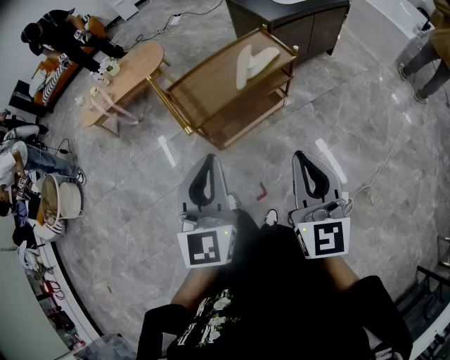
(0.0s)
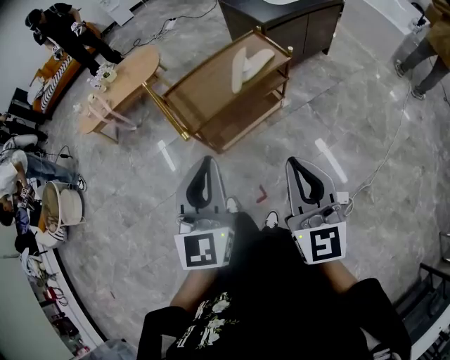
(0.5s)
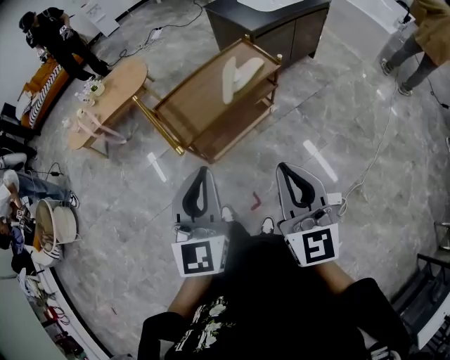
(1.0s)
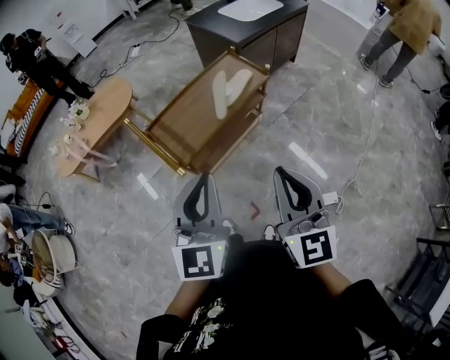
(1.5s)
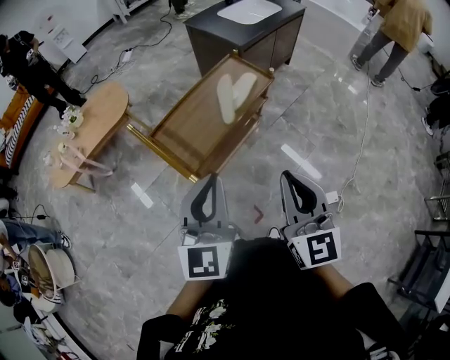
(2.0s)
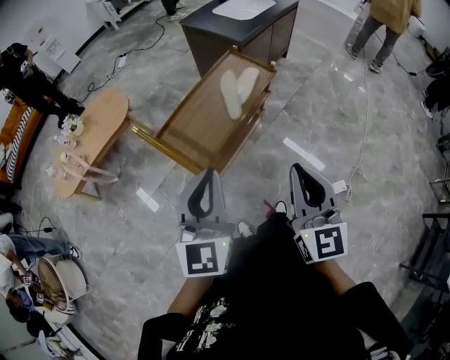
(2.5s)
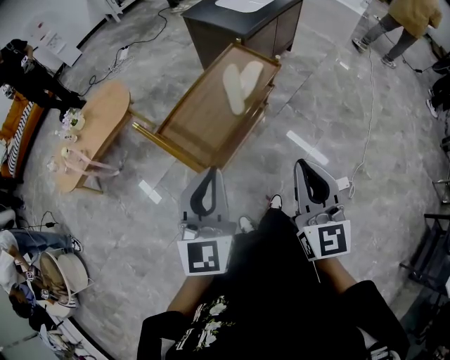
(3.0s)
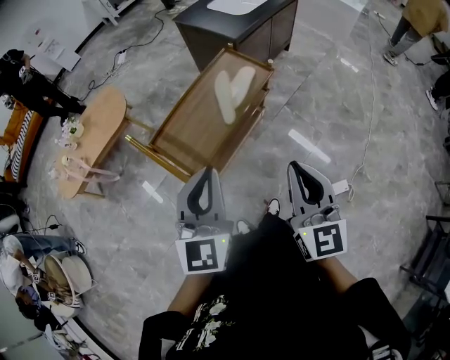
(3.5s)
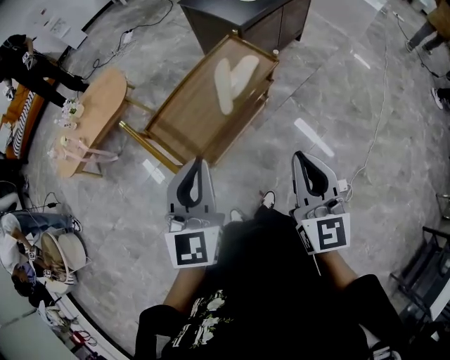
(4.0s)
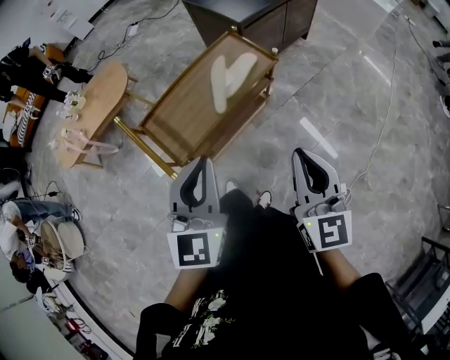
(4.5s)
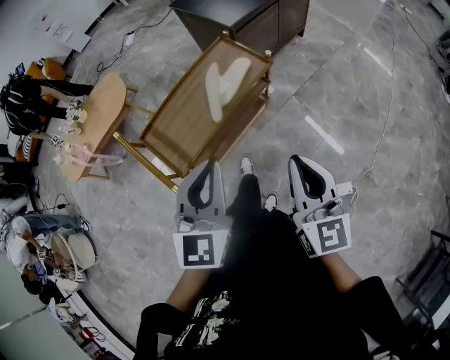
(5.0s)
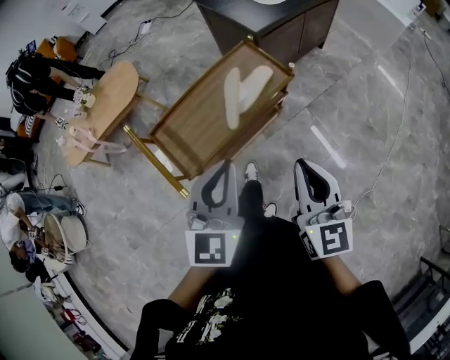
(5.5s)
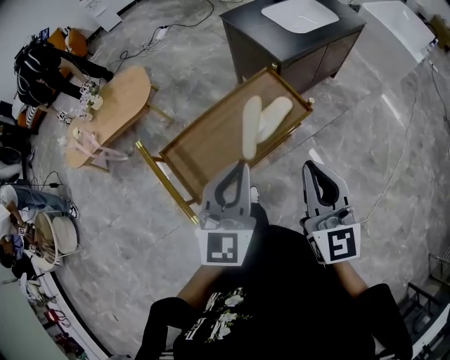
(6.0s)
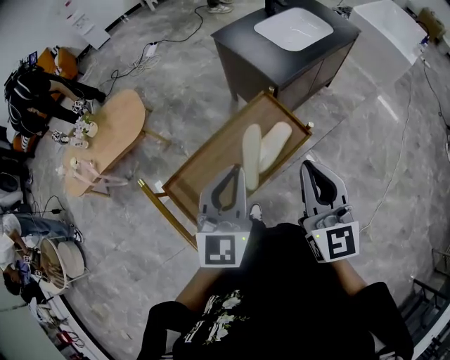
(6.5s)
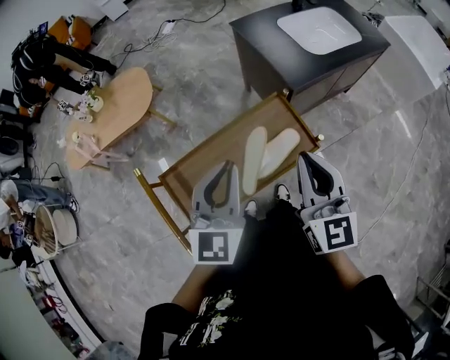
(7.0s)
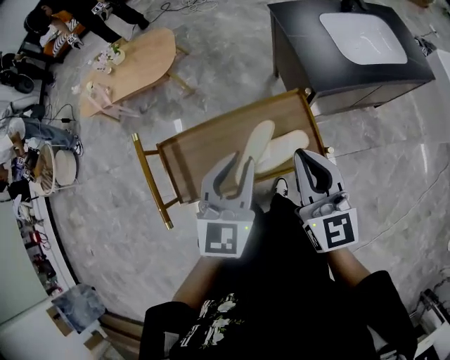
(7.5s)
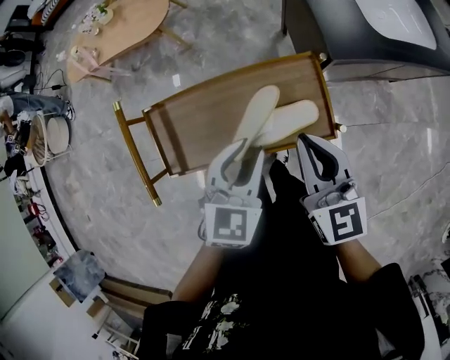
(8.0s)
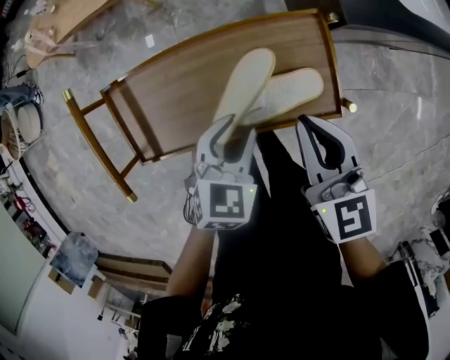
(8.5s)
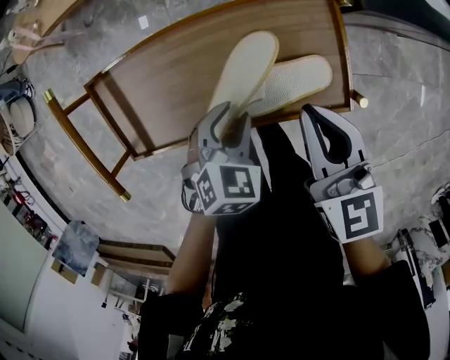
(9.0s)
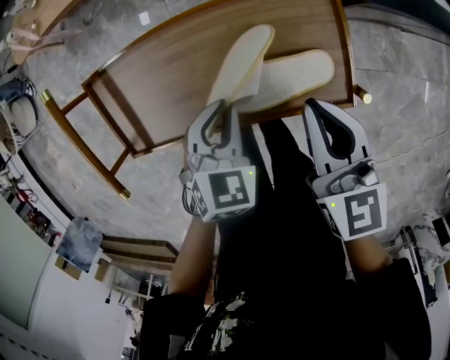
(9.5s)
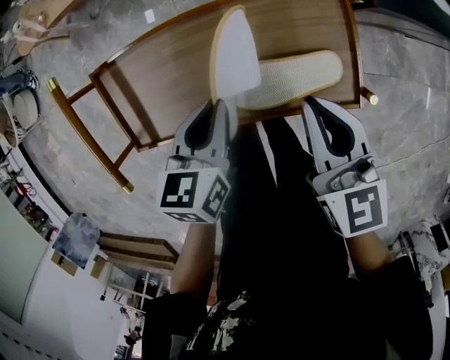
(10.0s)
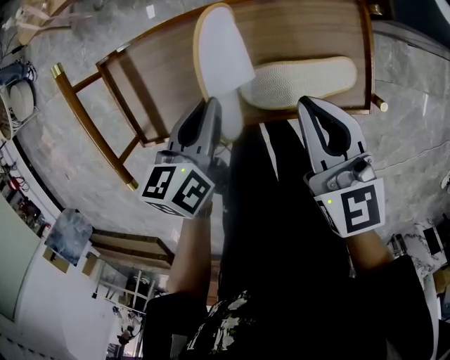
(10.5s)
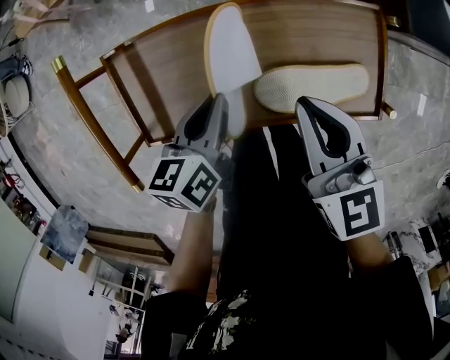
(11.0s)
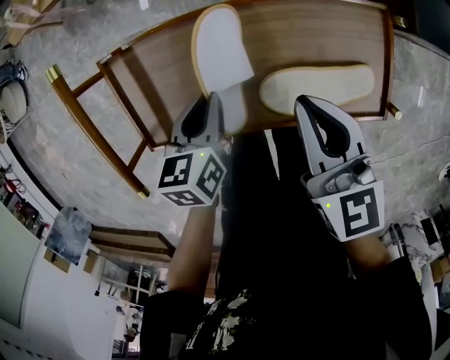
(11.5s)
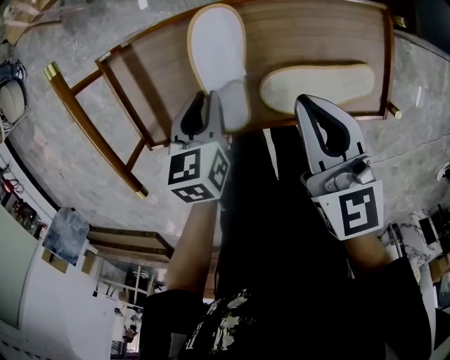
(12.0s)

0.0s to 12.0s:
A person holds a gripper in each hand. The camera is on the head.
0.0s to 2.0s: The right gripper heads to the left and forward, covering some 15 cm. The left gripper is displaced forward and to the left by some 15 cm.
2.0s to 4.0s: The right gripper shifts roughly 10 cm forward and to the right; the left gripper goes approximately 10 cm forward.
4.0s to 6.0s: Both grippers travel together forward, approximately 15 cm.
6.0s to 8.0s: The left gripper moves approximately 25 cm, turns by approximately 30 degrees, and opens, while the right gripper changes place by approximately 25 cm, and turns by roughly 40 degrees.
8.0s to 10.0s: The right gripper heads downward, covering roughly 10 cm. The left gripper goes roughly 15 cm downward and to the left, and turns by approximately 30 degrees.
10.0s to 12.0s: The left gripper goes roughly 15 cm to the left and downward; the right gripper is displaced to the left by roughly 10 cm.

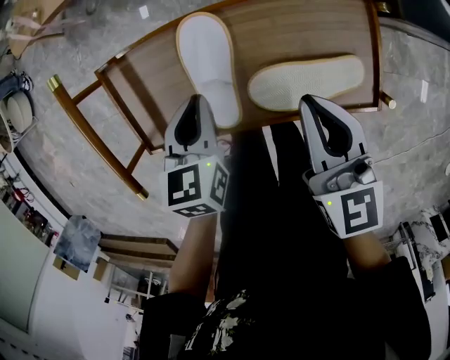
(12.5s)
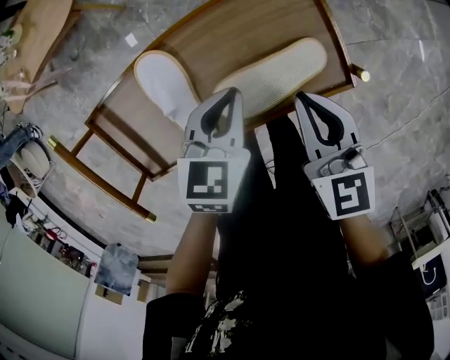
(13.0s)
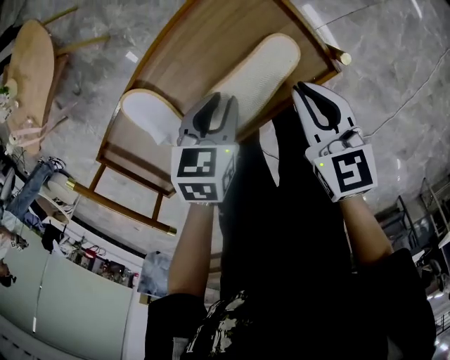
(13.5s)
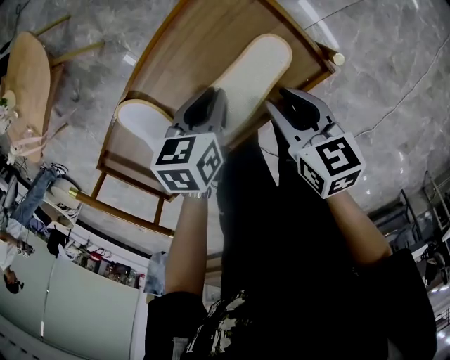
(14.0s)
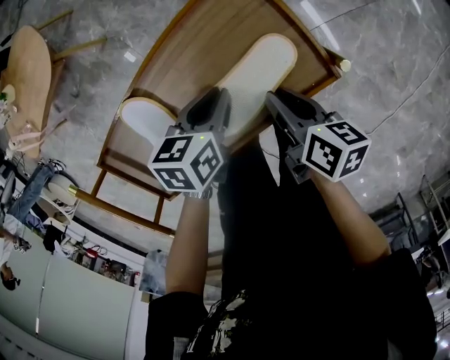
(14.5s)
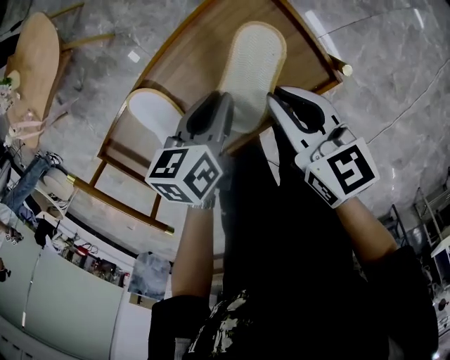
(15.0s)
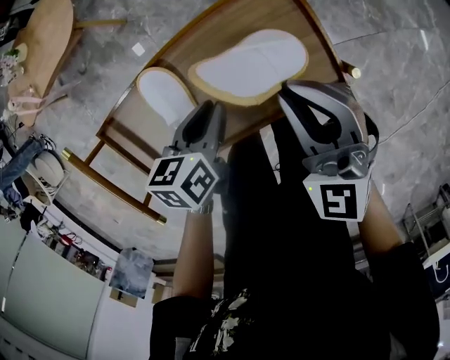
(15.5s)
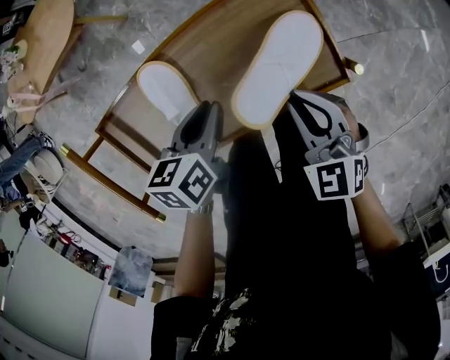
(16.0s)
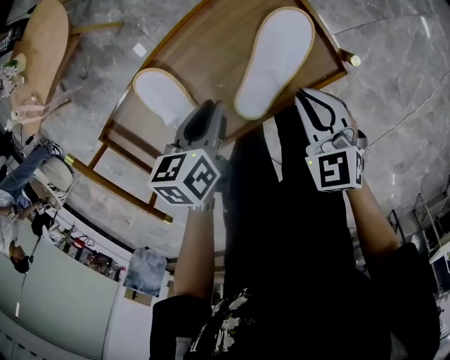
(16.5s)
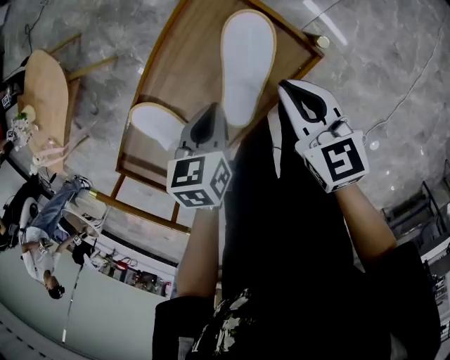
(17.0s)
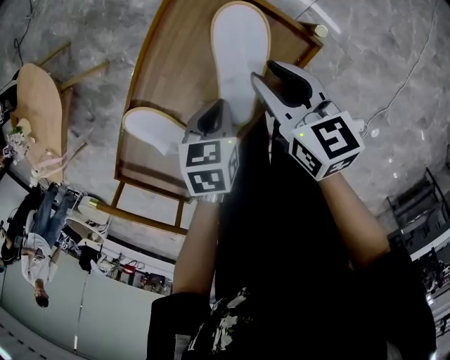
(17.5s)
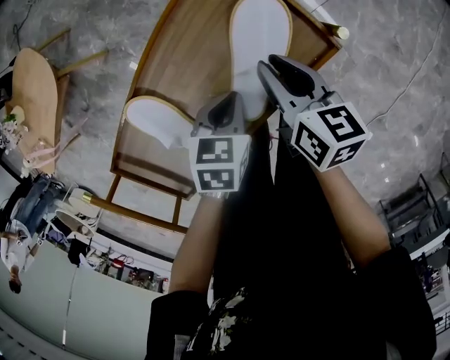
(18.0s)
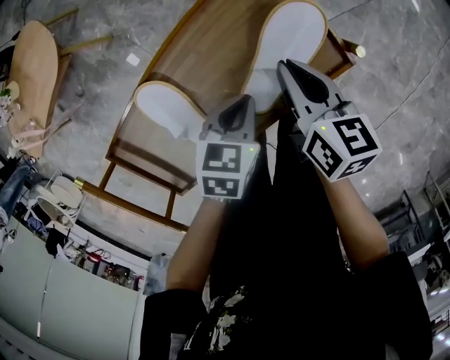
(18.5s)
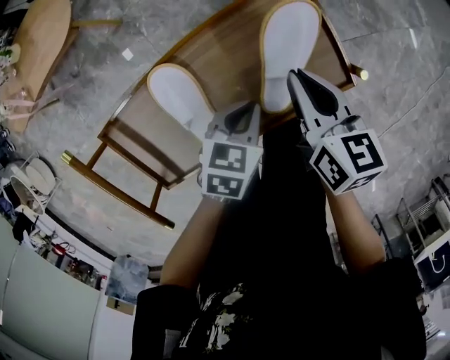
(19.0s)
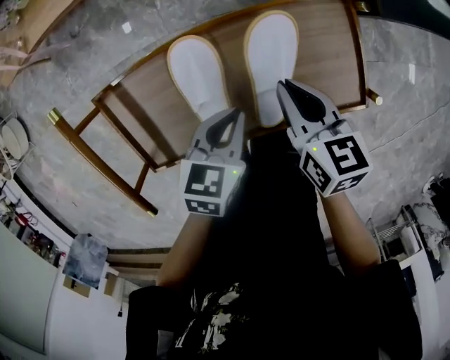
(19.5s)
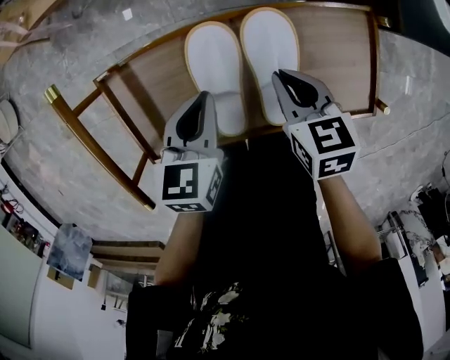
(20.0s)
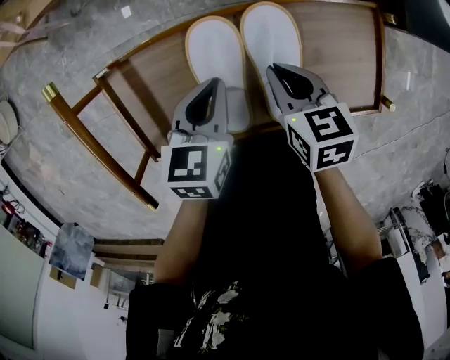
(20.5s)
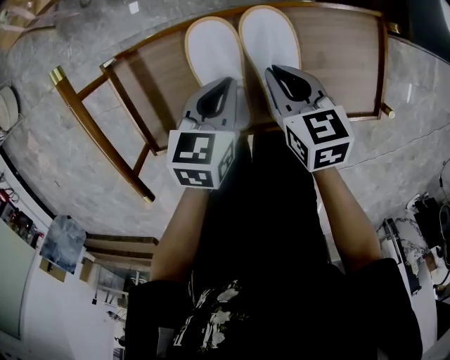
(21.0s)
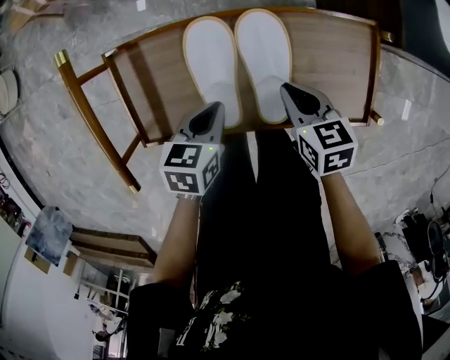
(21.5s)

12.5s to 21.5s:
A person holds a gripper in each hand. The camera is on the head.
12.5s to 14.5s: The left gripper changes place by roughly 20 cm, and turns by some 40 degrees; the right gripper travels downward by some 15 cm, and twists some 60 degrees clockwise, seen from behind.
14.5s to 17.0s: The right gripper goes about 5 cm upward, and changes its angle by roughly 40 degrees.
17.0s to 19.5s: The right gripper moves approximately 15 cm, rotates about 20 degrees, and opens and closes again. Meanwhile the left gripper shifts by roughly 10 cm.
19.5s to 21.5s: The left gripper is displaced to the left by roughly 5 cm, while the right gripper moves downward, approximately 5 cm, and changes its angle by about 20 degrees.

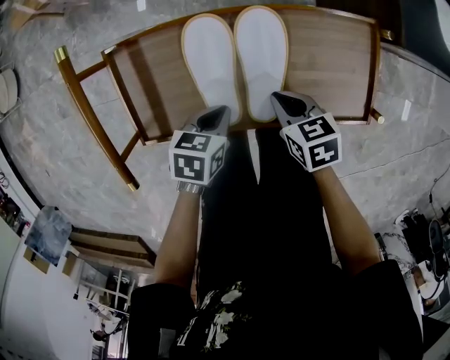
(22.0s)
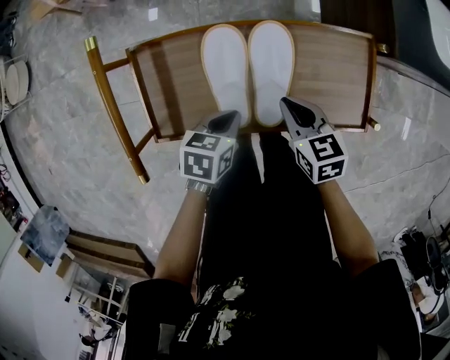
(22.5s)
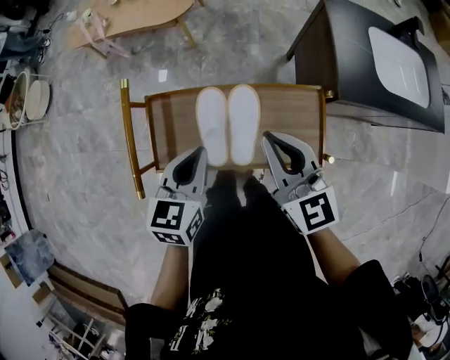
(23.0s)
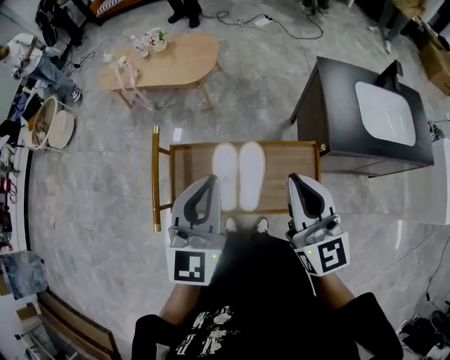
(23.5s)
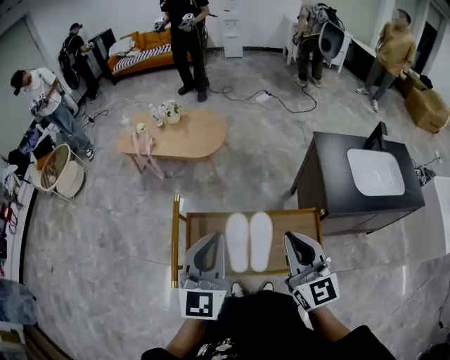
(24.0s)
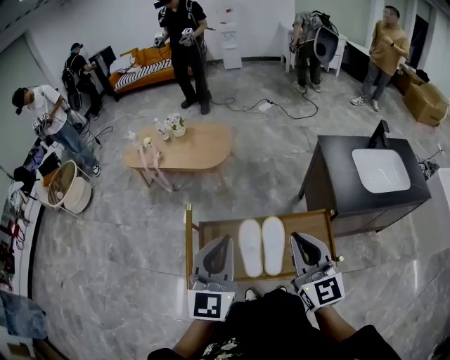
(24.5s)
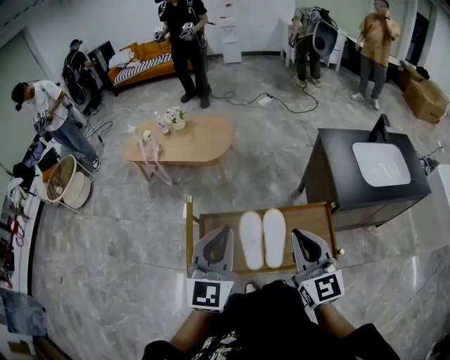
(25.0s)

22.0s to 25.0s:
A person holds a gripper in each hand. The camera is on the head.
22.0s to 23.5s: Both grippers move upward, about 40 cm. The right gripper tilts its fingers about 60 degrees upward. Meanwhile the left gripper tips its fingers upward by about 50 degrees.
23.5s to 25.0s: The two grippers go some 5 cm to the left.

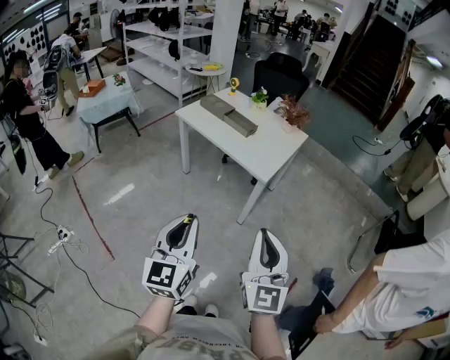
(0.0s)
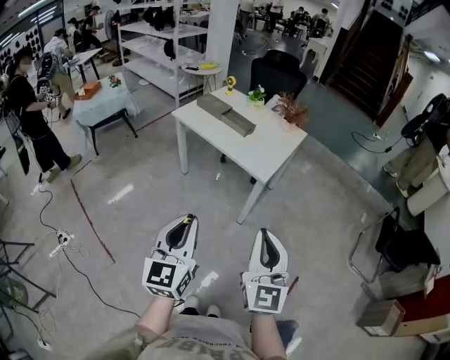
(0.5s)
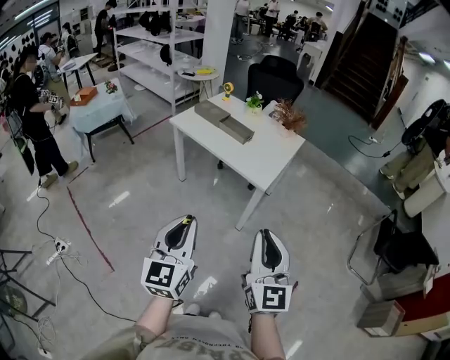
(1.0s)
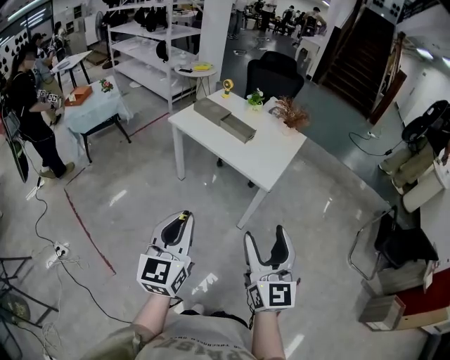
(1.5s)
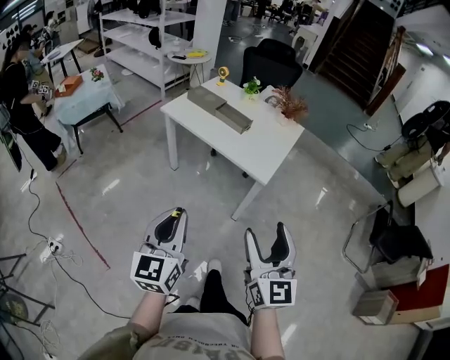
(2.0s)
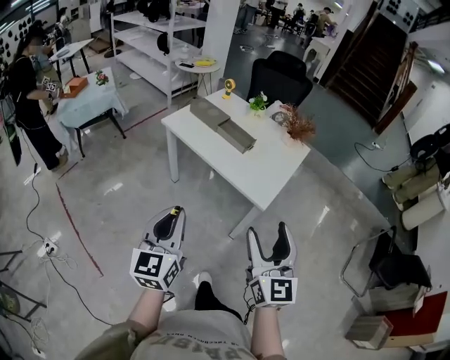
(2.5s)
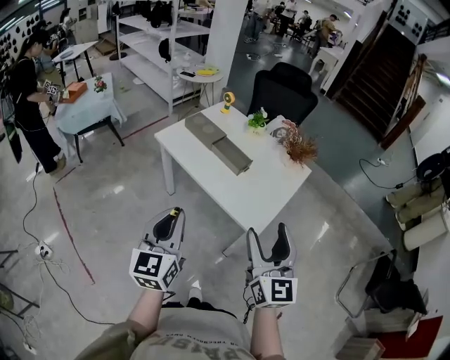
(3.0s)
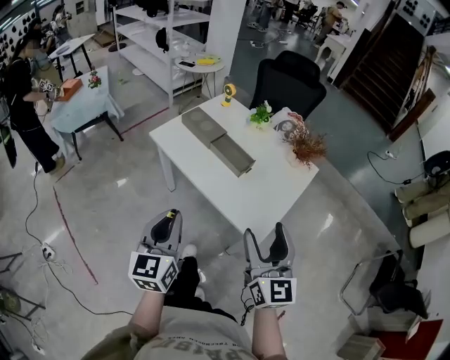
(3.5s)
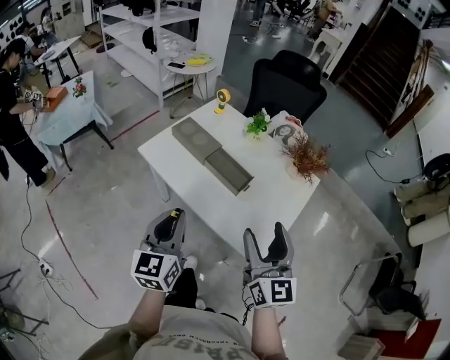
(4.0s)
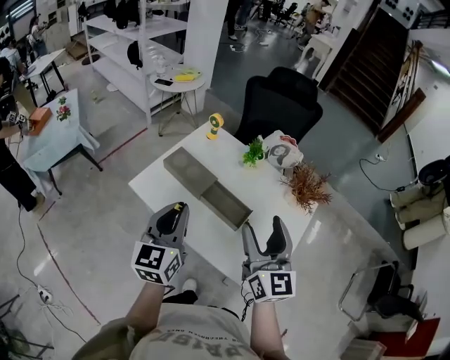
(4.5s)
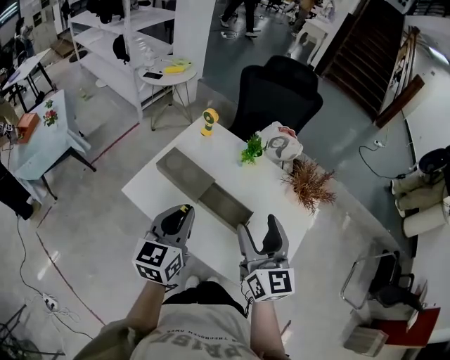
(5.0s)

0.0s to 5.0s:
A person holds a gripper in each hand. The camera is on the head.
0.0s to 2.5s: The grippers both shift forward by roughly 20 cm. The right gripper opens its fingers.
2.5s to 5.0s: The two grippers travel together, forward, some 50 cm.
